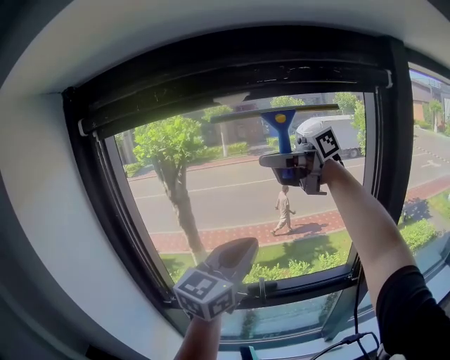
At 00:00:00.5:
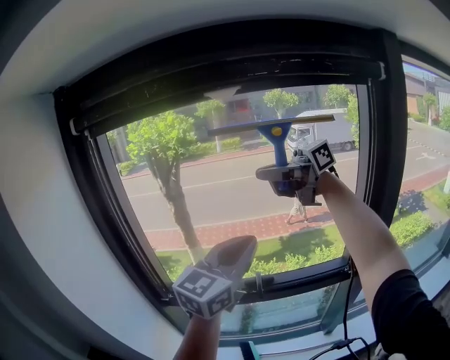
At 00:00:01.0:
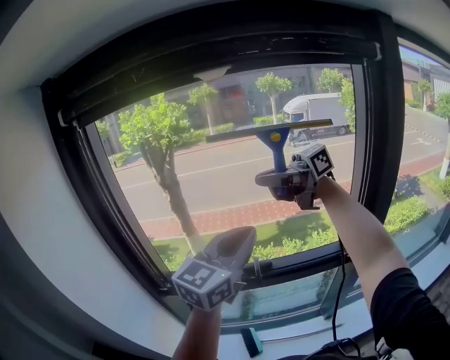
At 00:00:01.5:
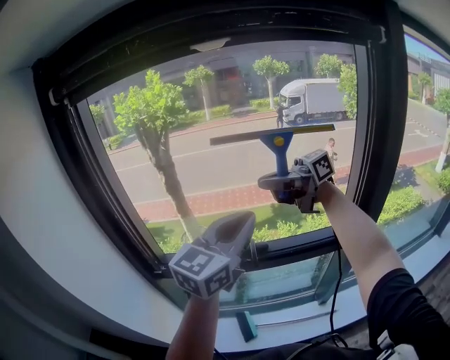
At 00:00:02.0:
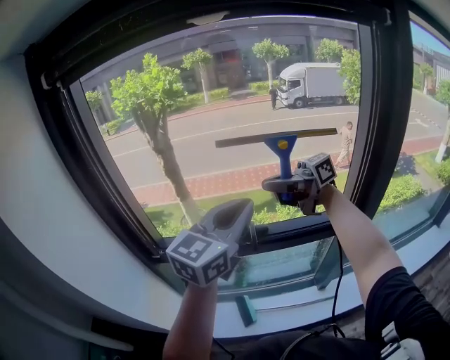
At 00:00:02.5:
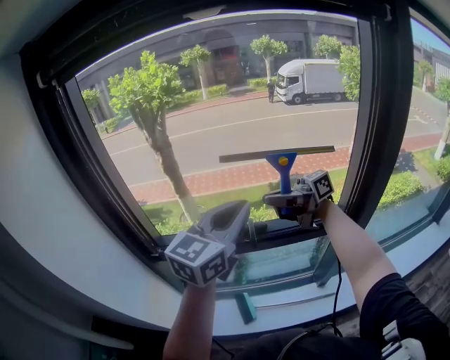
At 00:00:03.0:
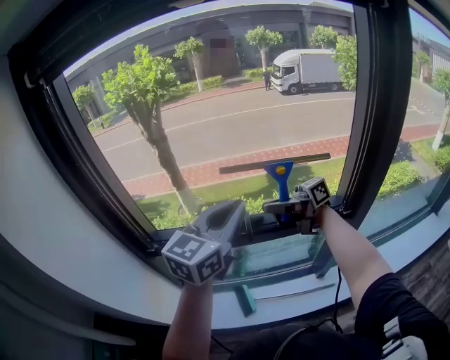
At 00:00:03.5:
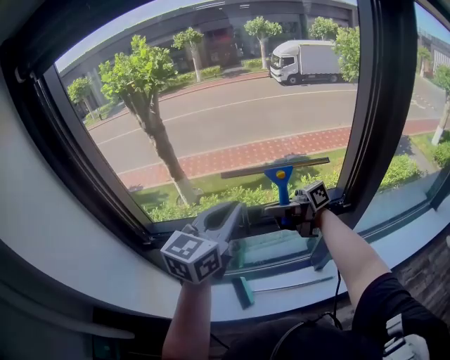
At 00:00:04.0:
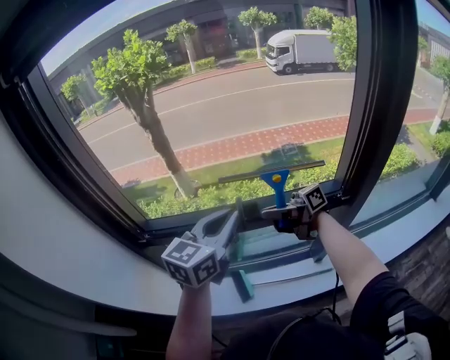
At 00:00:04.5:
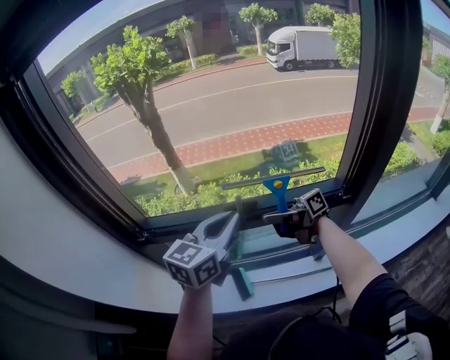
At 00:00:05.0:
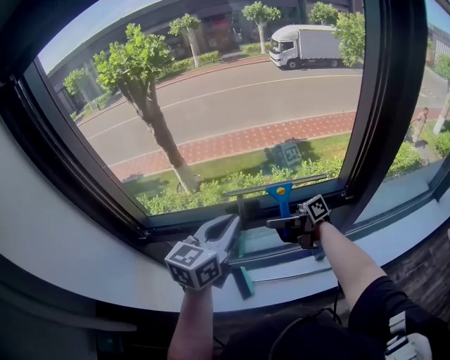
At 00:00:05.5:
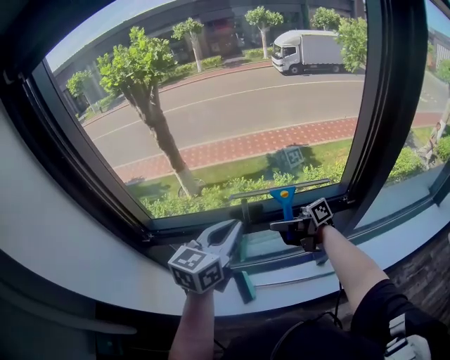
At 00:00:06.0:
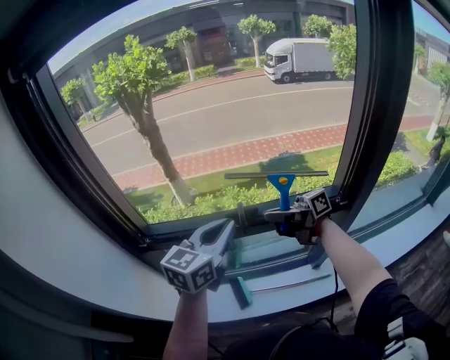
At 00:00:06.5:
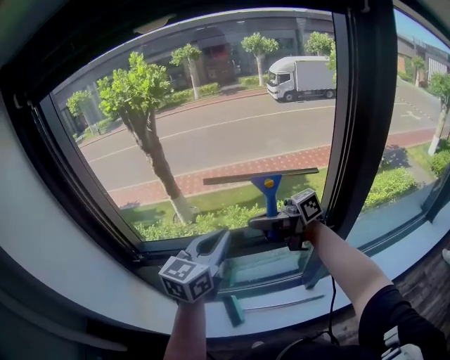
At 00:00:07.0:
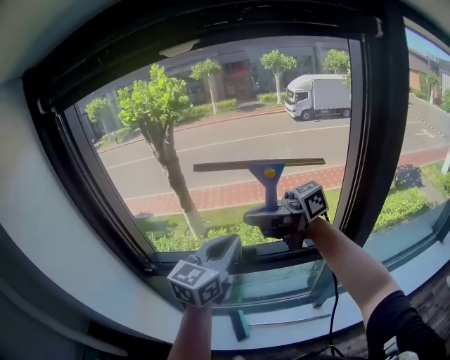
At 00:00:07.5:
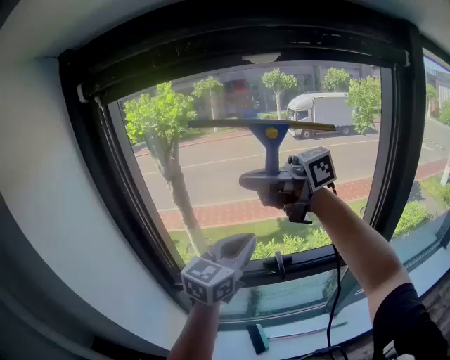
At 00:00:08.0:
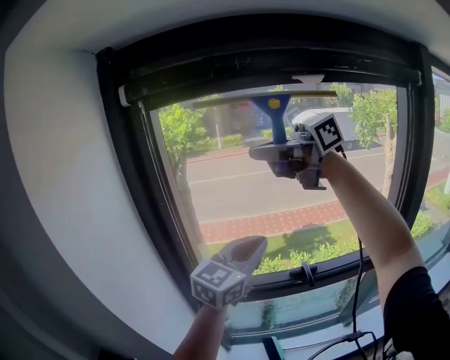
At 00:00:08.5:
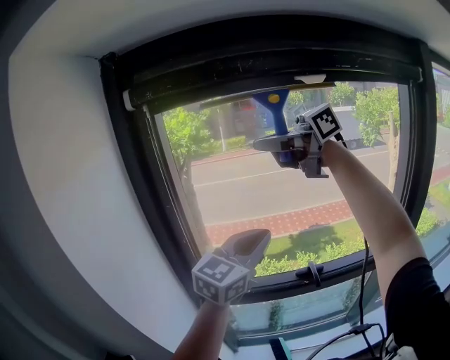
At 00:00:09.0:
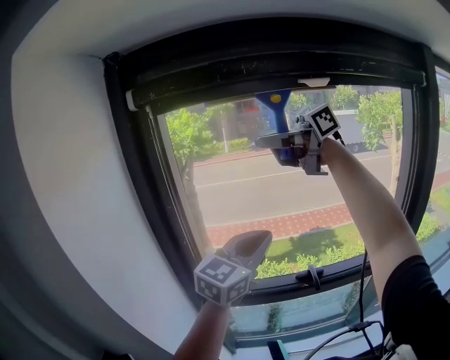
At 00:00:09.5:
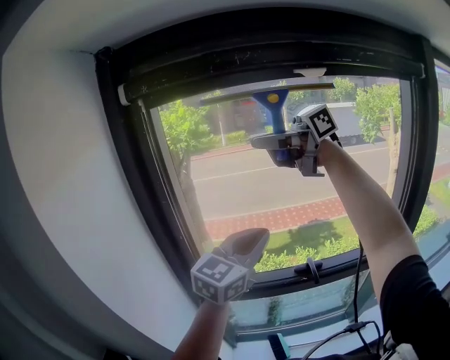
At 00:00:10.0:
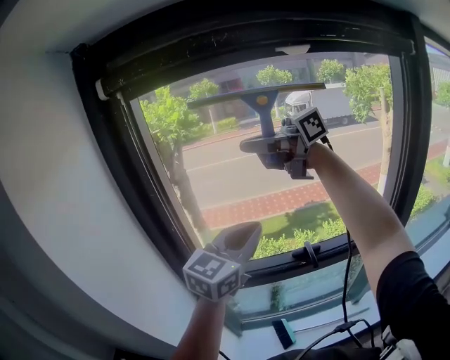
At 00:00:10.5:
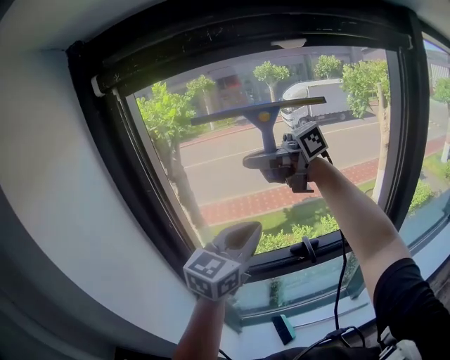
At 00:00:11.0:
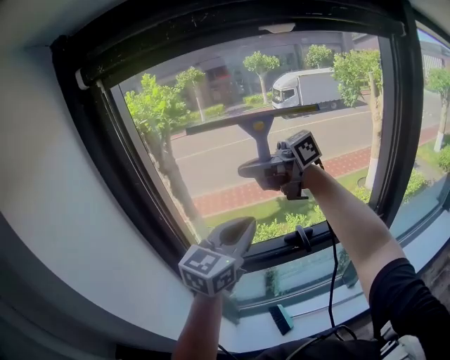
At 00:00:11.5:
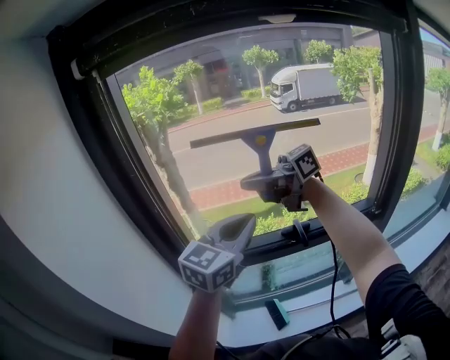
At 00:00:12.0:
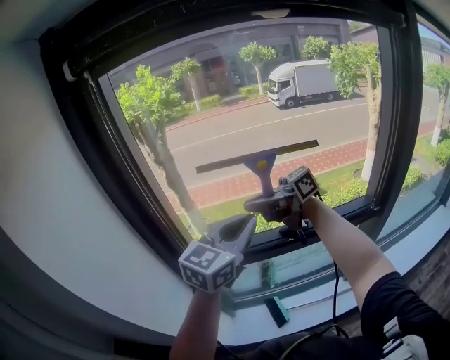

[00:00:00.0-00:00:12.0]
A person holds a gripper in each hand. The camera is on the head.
00:00:00.0 to 00:00:02.0: The left gripper is displaced downward by about 5 cm, while the right gripper is displaced downward by some 25 cm.
00:00:02.0 to 00:00:04.0: The left gripper goes roughly 10 cm downward. Meanwhile the right gripper is displaced downward by about 20 cm, and rotates about 20 degrees.
00:00:04.0 to 00:00:06.0: The right gripper goes downward and returns, roughly 5 cm each way.
00:00:06.0 to 00:00:08.0: The left gripper heads upward, covering roughly 15 cm, and rotates roughly 20 degrees. Meanwhile the right gripper is displaced upward by about 40 cm, and rotates approximately 40 degrees.
00:00:08.0 to 00:00:10.0: The right gripper changes place by approximately 5 cm.
00:00:10.0 to 00:00:12.0: The right gripper is displaced downward by approximately 25 cm. The left gripper moves downward, some 5 cm.

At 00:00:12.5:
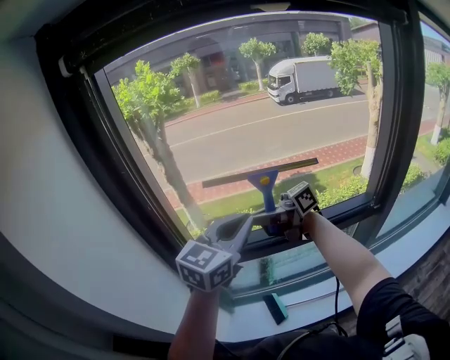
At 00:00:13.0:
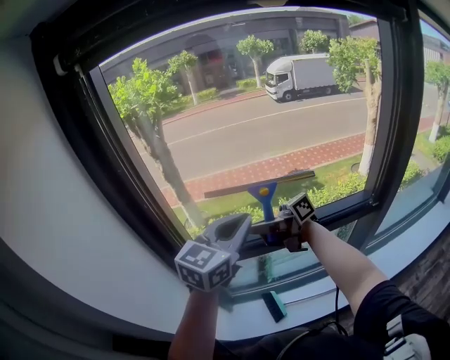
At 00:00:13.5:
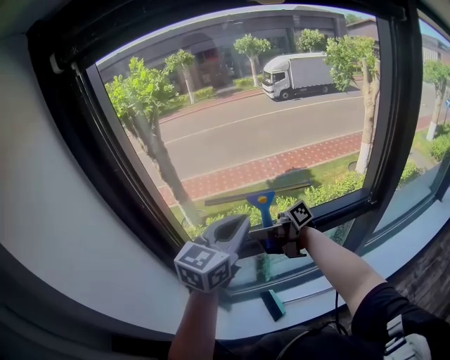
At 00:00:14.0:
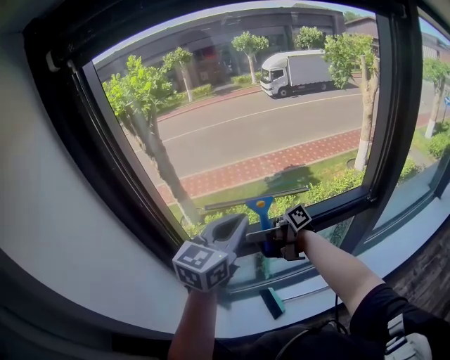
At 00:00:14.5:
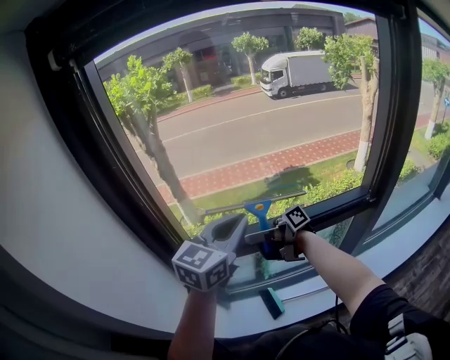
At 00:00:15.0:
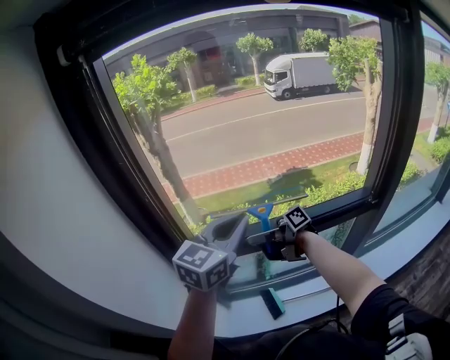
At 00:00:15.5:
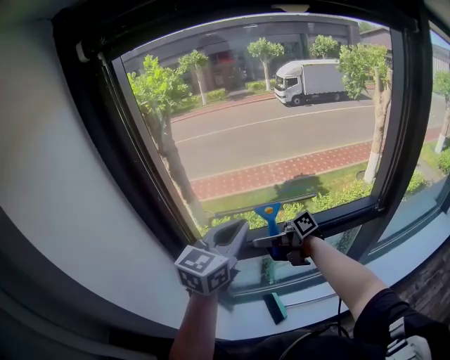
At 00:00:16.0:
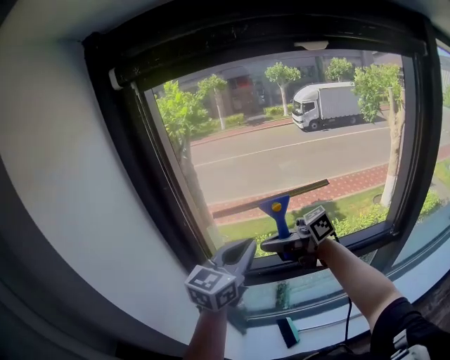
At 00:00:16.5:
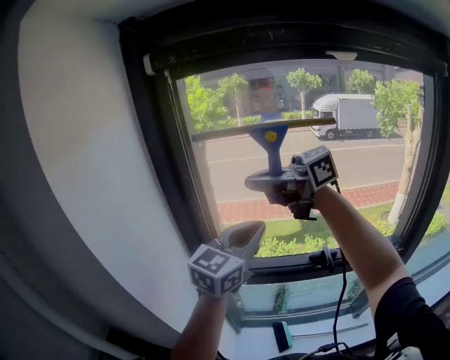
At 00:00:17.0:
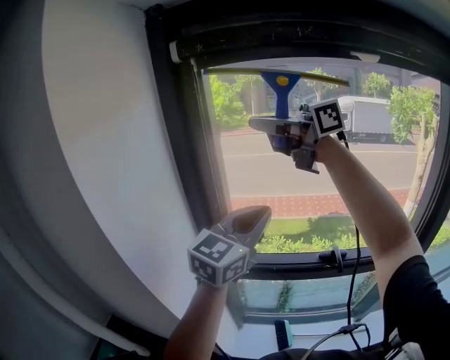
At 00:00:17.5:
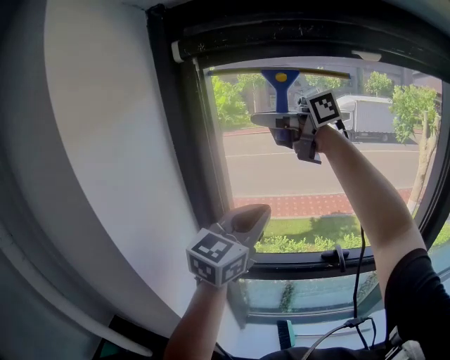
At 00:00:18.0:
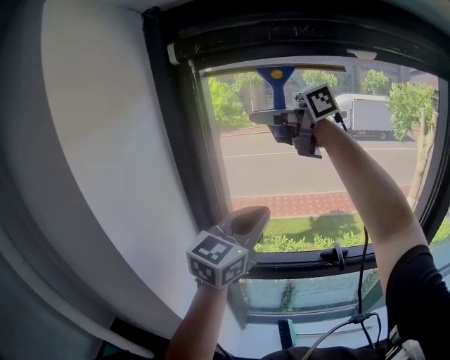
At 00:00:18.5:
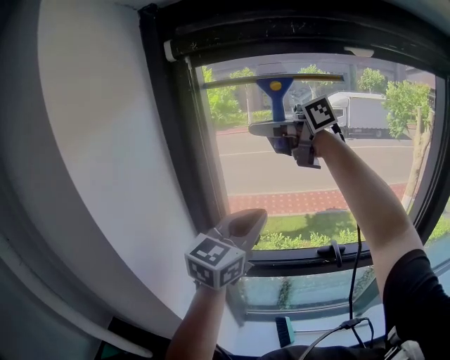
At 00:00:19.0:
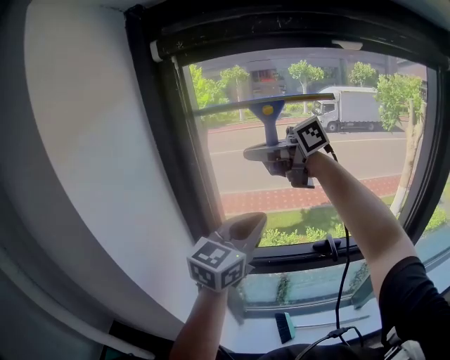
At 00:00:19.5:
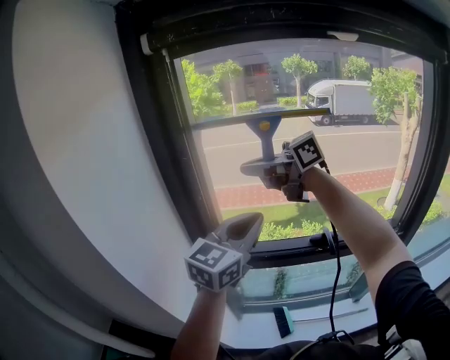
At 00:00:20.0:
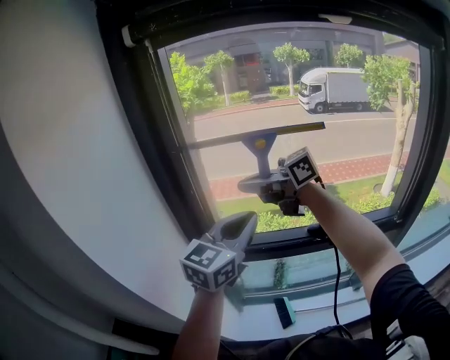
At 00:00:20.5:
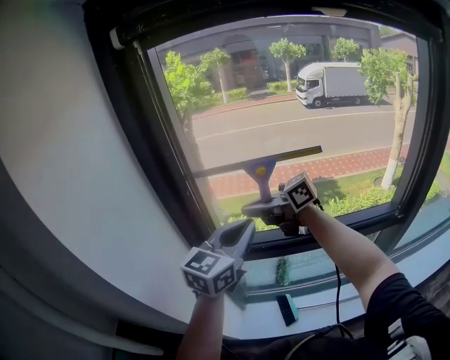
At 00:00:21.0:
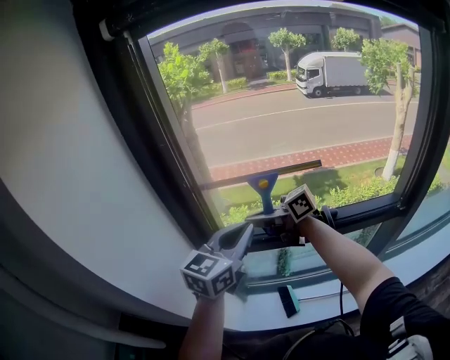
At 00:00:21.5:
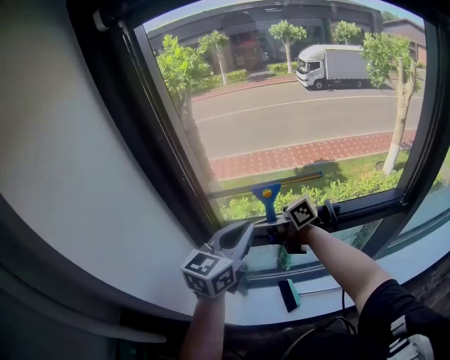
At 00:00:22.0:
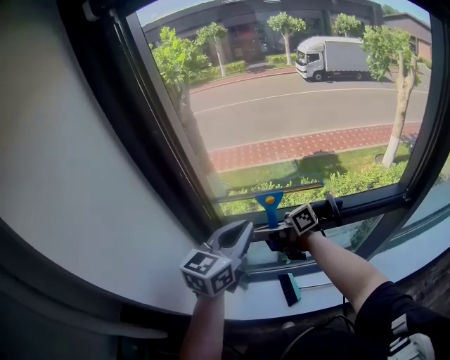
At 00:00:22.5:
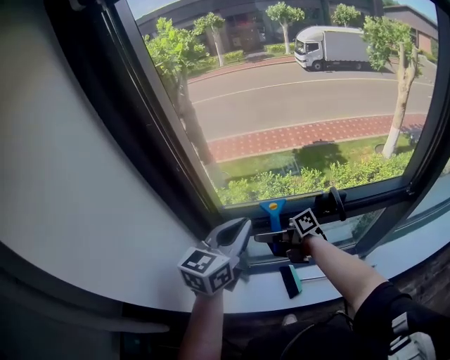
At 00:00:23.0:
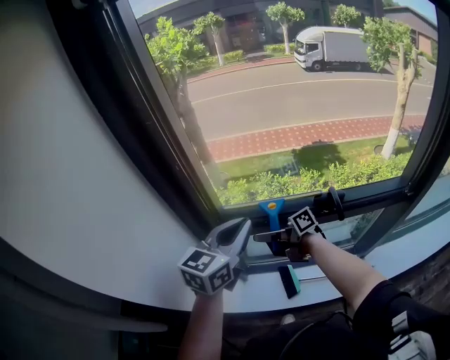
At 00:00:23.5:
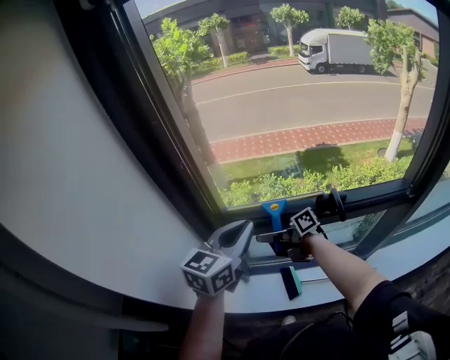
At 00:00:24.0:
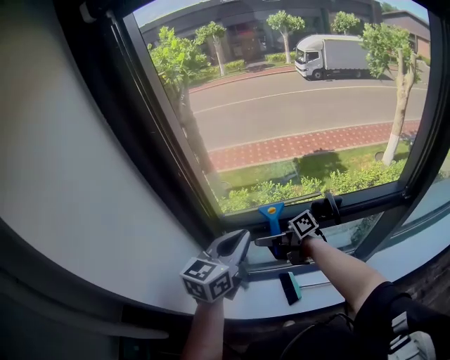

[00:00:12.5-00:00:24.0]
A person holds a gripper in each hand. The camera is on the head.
00:00:12.5 to 00:00:14.5: The right gripper is displaced downward by roughly 10 cm, and changes its angle by about 30 degrees.
00:00:14.5 to 00:00:16.5: The right gripper is displaced upward by approximately 30 cm, and rolls counterclockwise, seen from behind, by approximately 50 degrees; the left gripper shifts roughly 10 cm upward.
00:00:16.5 to 00:00:18.5: The right gripper travels upward by some 10 cm.
00:00:18.5 to 00:00:20.0: The right gripper goes approximately 20 cm downward, while the left gripper moves downward, some 5 cm.
00:00:20.0 to 00:00:22.0: The right gripper goes approximately 25 cm downward, and turns by approximately 30 degrees. Meanwhile the left gripper travels downward by roughly 10 cm.

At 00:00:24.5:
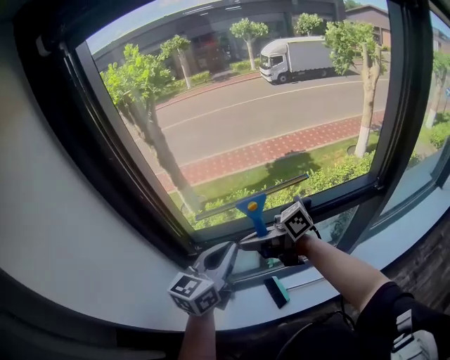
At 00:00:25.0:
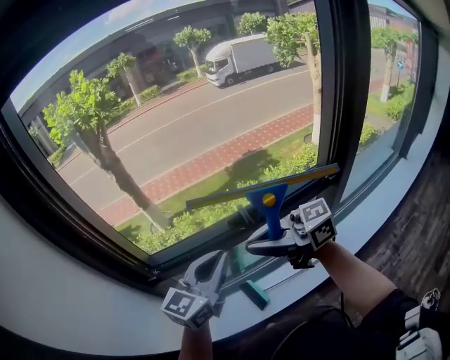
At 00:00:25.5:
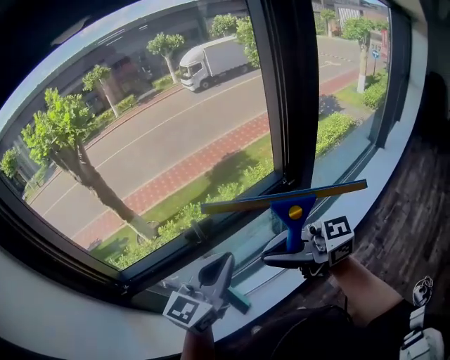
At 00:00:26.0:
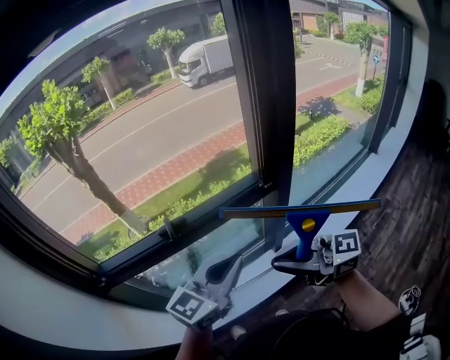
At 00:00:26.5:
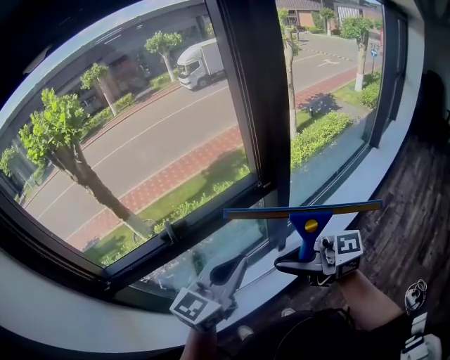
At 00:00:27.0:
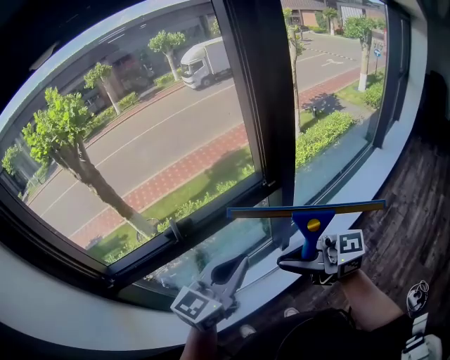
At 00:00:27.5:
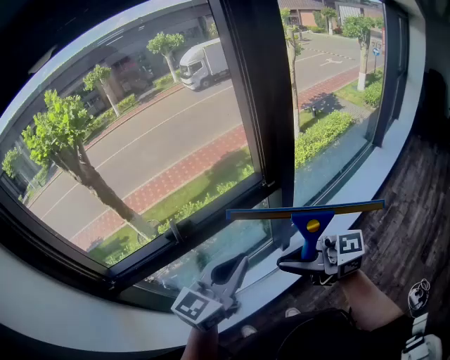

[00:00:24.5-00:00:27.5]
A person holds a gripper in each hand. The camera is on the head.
00:00:24.5 to 00:00:26.0: The left gripper changes place by some 35 cm, and rotates roughly 30 degrees. The right gripper ends up some 50 cm from where it was, and turns by some 50 degrees.
00:00:26.0 to 00:00:27.5: The grippers make only small movements.
